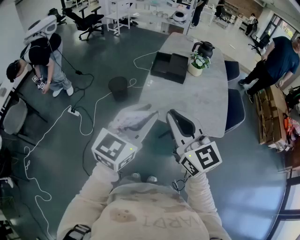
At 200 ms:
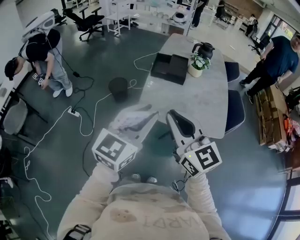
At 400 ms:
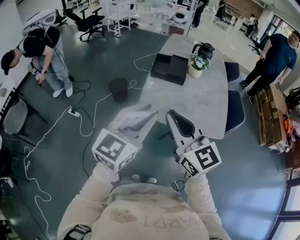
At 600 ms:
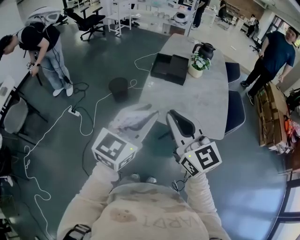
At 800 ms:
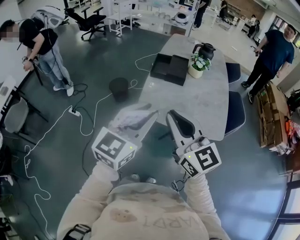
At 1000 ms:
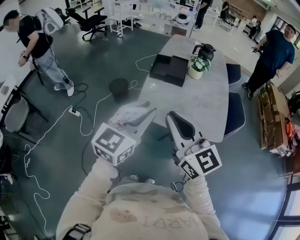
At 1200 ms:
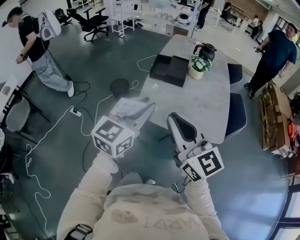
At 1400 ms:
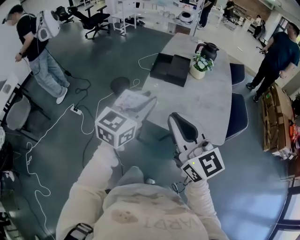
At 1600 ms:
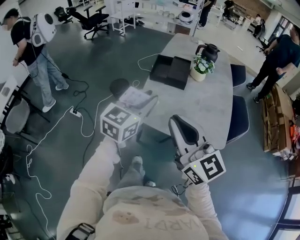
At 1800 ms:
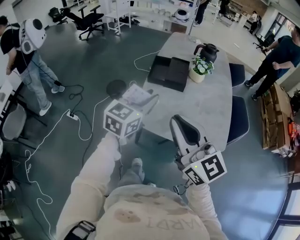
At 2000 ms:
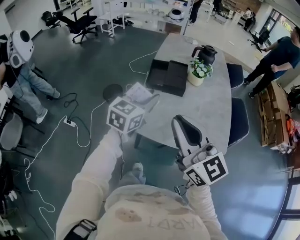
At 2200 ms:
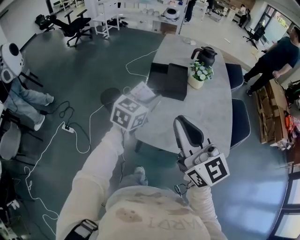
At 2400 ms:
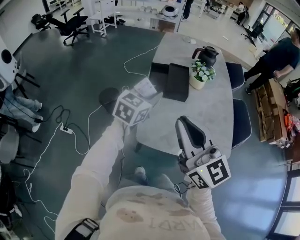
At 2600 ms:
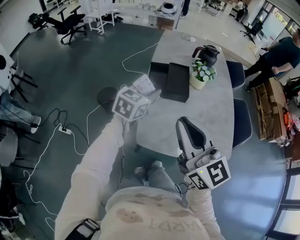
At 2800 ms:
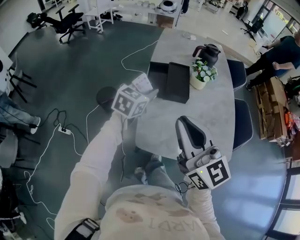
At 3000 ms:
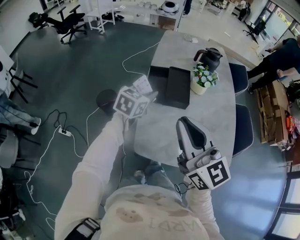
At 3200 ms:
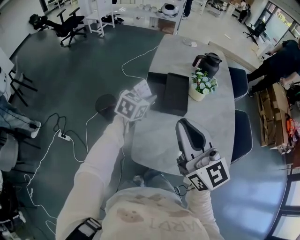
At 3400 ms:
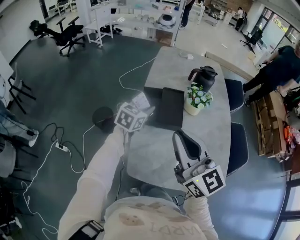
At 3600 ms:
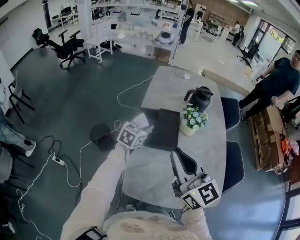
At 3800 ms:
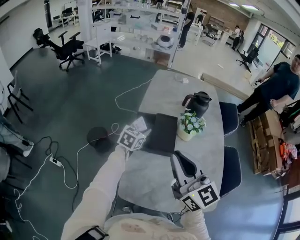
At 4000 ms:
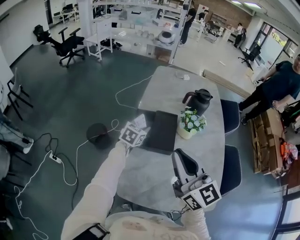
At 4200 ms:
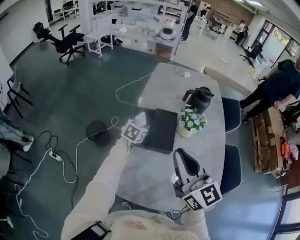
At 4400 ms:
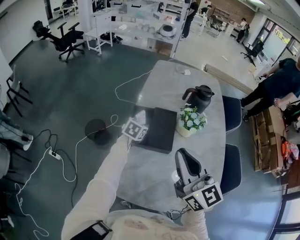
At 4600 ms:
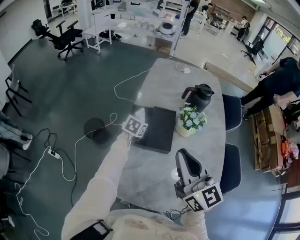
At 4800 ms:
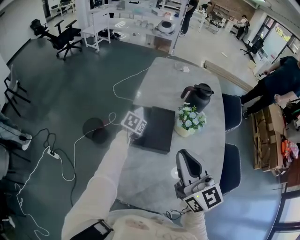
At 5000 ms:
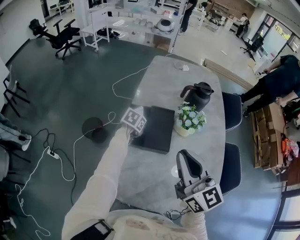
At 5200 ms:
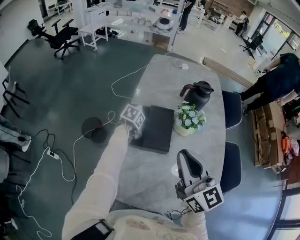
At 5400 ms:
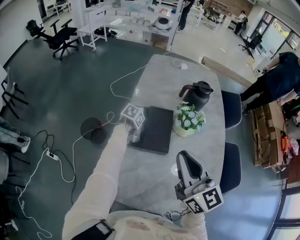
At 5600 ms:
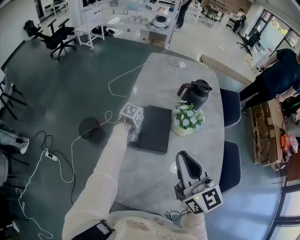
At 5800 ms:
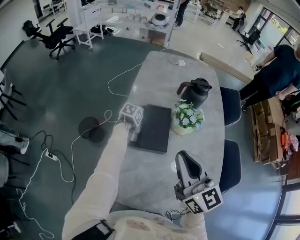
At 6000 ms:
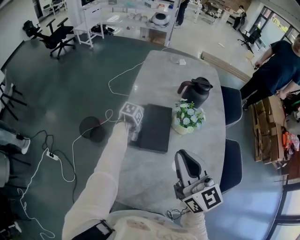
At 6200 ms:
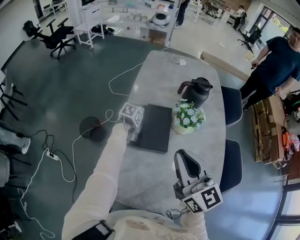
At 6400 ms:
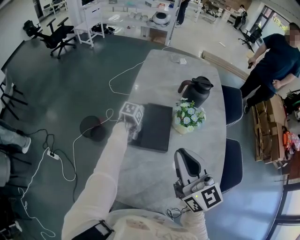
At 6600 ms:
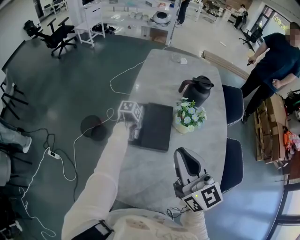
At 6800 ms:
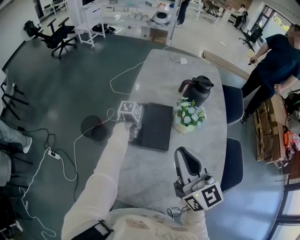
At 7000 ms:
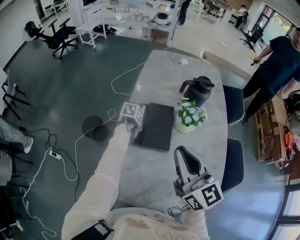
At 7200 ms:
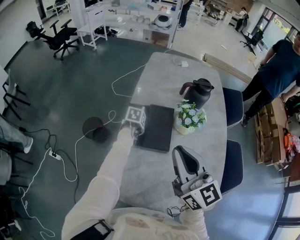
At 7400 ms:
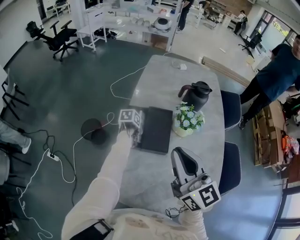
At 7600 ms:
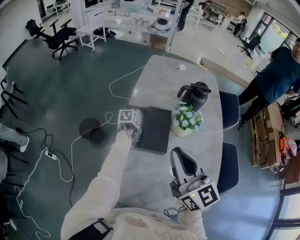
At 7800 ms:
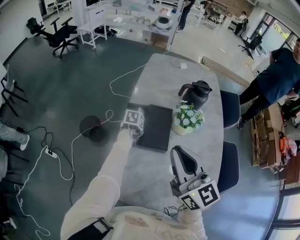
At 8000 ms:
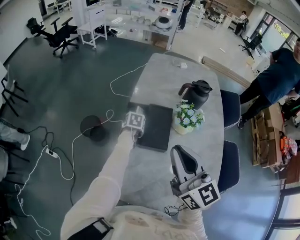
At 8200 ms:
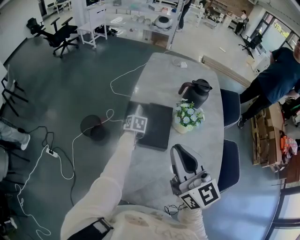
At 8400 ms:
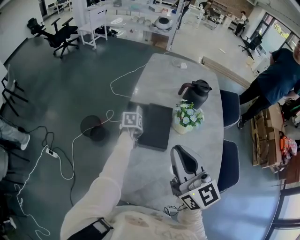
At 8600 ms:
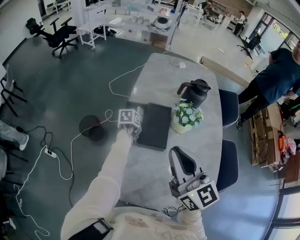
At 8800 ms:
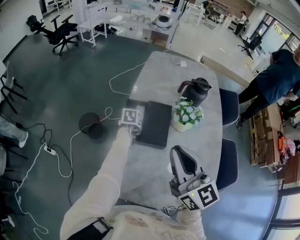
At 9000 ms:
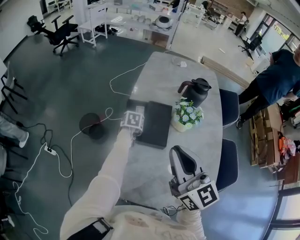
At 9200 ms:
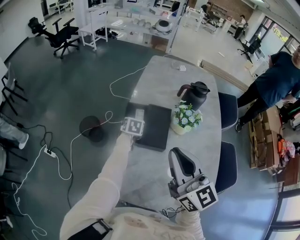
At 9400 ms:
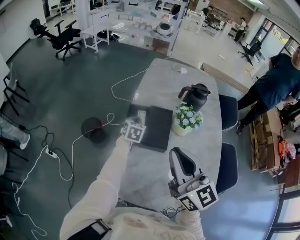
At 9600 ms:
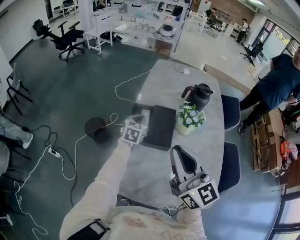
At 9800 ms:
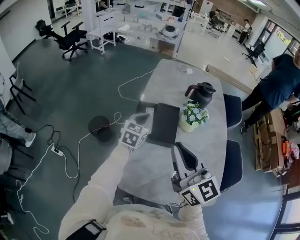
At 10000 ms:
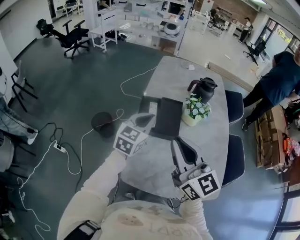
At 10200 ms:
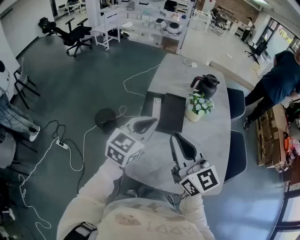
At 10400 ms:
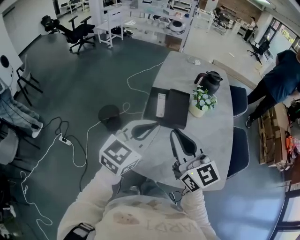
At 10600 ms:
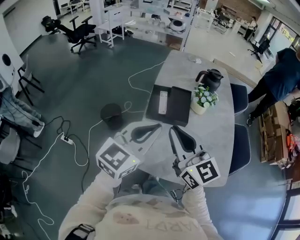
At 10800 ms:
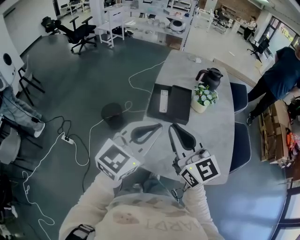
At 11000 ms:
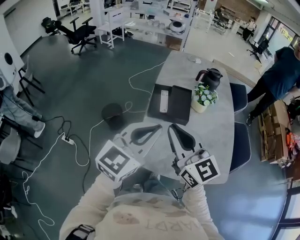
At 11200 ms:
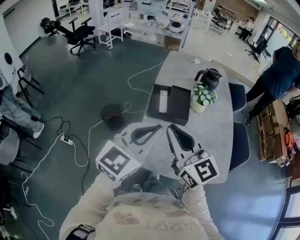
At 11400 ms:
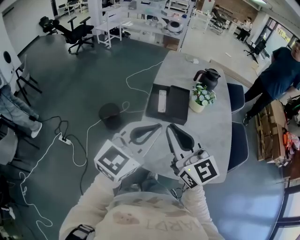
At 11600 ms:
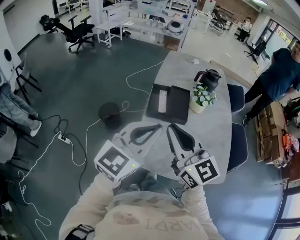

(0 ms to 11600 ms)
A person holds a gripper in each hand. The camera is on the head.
0 ms - 1400 ms: The right gripper shifts by approximately 5 cm. Meanwhile the left gripper heads forward, covering approximately 10 cm.
1400 ms - 2800 ms: Both grippers move forward, some 30 cm. The left gripper turns by some 20 degrees.
2800 ms - 4400 ms: The left gripper is displaced forward and downward by approximately 25 cm, and rotates roughly 20 degrees, while the right gripper is displaced forward and to the right by approximately 20 cm.
4400 ms - 5800 ms: The right gripper moves some 5 cm, while the left gripper is displaced downward by some 10 cm, and turns by some 40 degrees.
5800 ms - 7200 ms: The grippers stay close to where they were, moving slightly.
8800 ms - 10200 ms: The right gripper is displaced backward and to the left by some 10 cm; the left gripper heads upward and backward, covering roughly 40 cm, angles its fingers upward, by roughly 50 degrees, and closes up.
10200 ms - 11600 ms: The left gripper travels backward and upward by about 15 cm. Meanwhile the right gripper heads backward and to the left, covering roughly 10 cm.

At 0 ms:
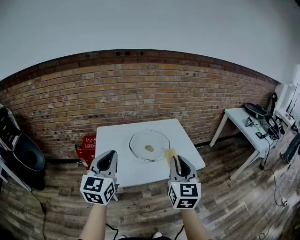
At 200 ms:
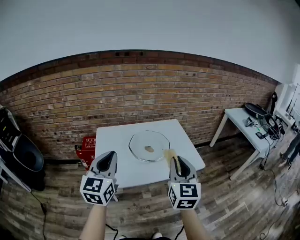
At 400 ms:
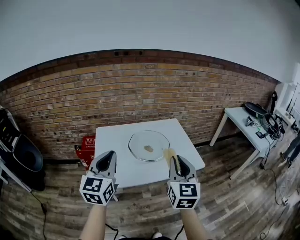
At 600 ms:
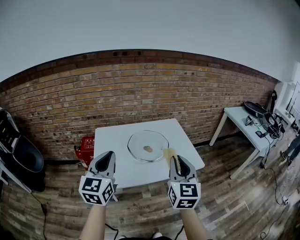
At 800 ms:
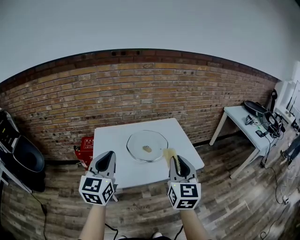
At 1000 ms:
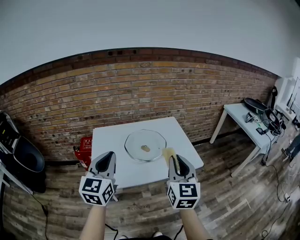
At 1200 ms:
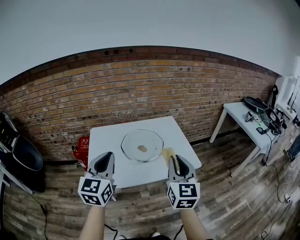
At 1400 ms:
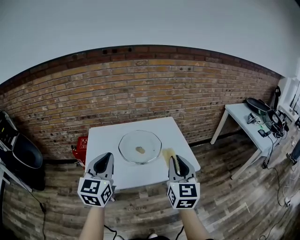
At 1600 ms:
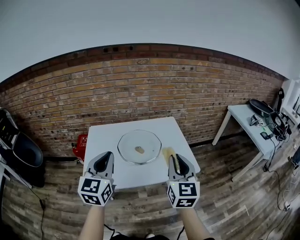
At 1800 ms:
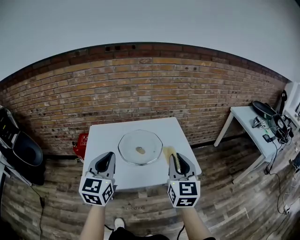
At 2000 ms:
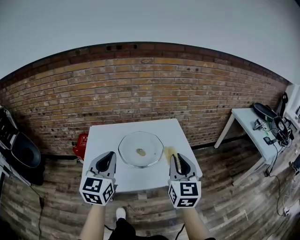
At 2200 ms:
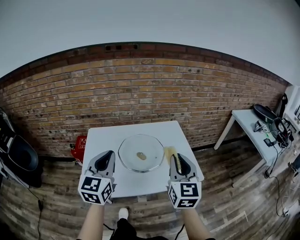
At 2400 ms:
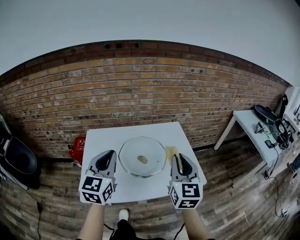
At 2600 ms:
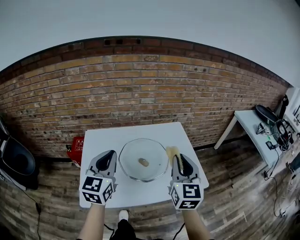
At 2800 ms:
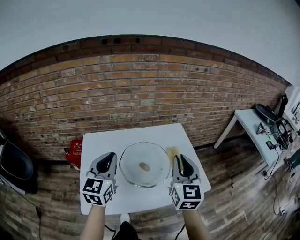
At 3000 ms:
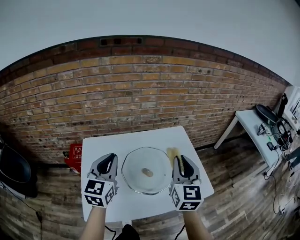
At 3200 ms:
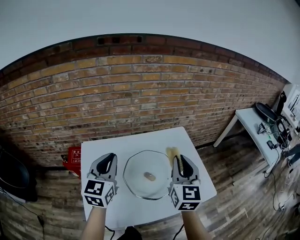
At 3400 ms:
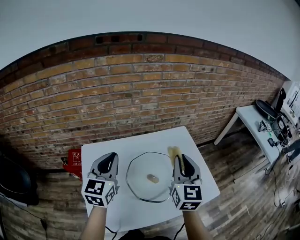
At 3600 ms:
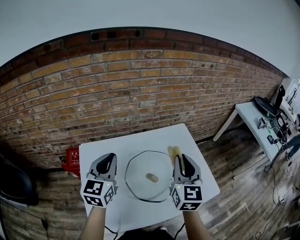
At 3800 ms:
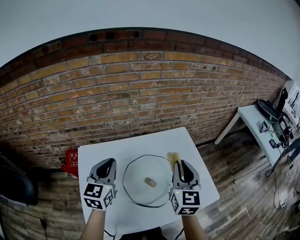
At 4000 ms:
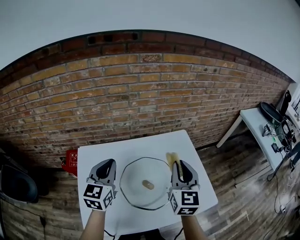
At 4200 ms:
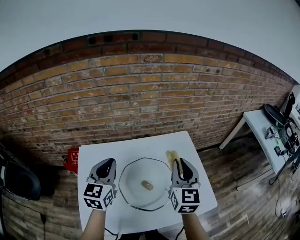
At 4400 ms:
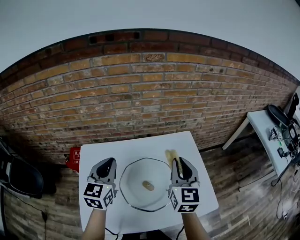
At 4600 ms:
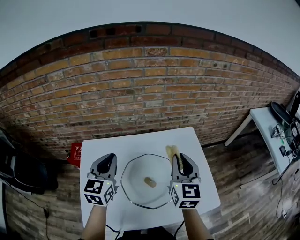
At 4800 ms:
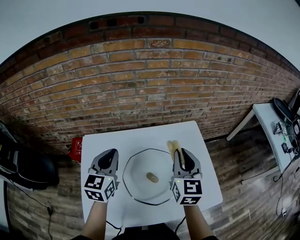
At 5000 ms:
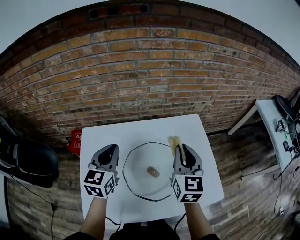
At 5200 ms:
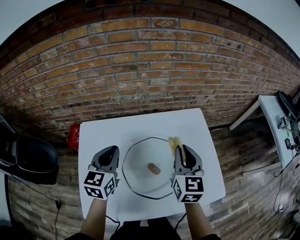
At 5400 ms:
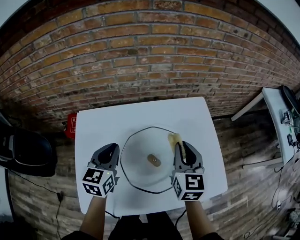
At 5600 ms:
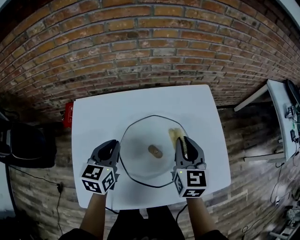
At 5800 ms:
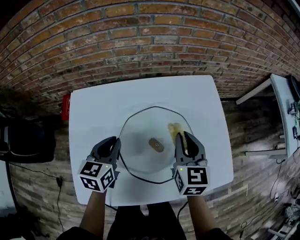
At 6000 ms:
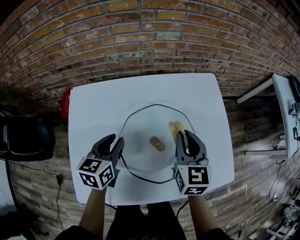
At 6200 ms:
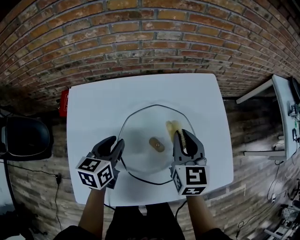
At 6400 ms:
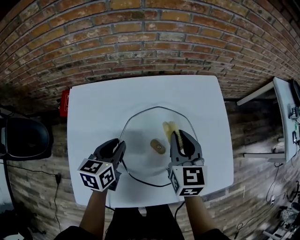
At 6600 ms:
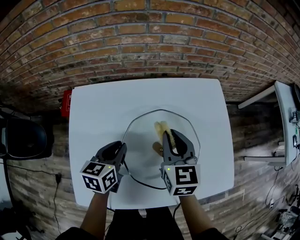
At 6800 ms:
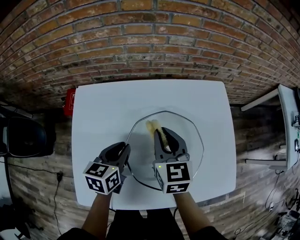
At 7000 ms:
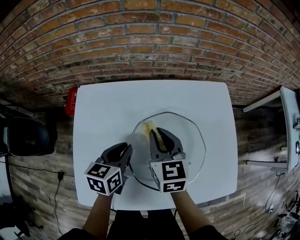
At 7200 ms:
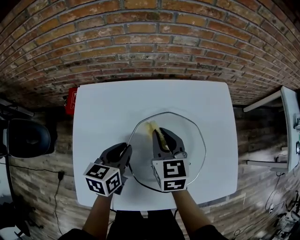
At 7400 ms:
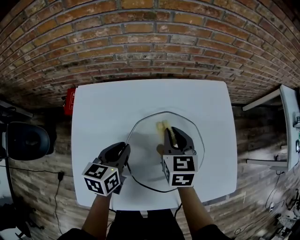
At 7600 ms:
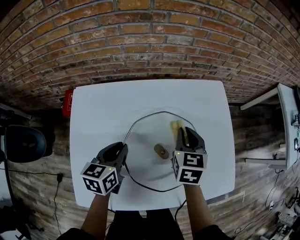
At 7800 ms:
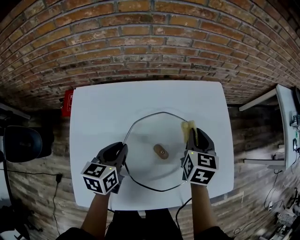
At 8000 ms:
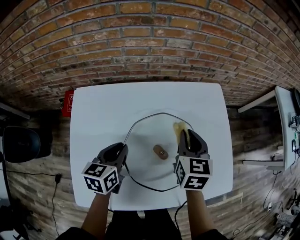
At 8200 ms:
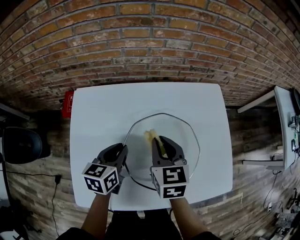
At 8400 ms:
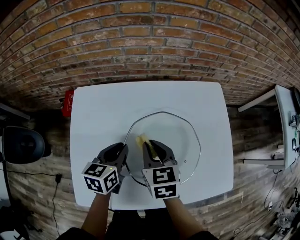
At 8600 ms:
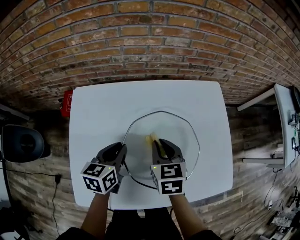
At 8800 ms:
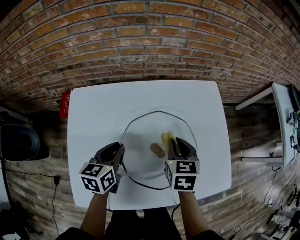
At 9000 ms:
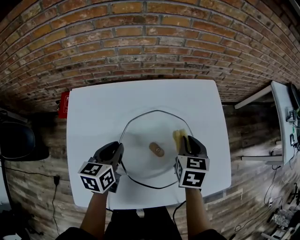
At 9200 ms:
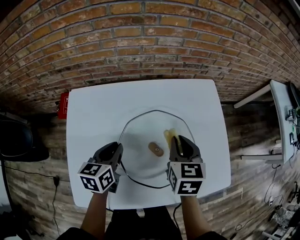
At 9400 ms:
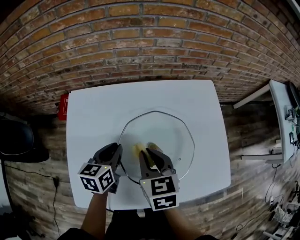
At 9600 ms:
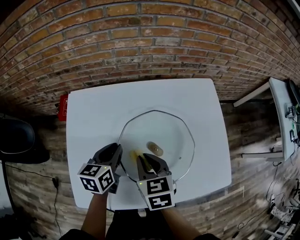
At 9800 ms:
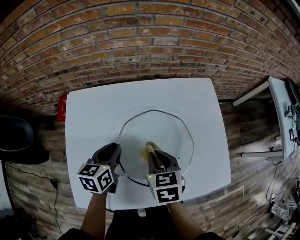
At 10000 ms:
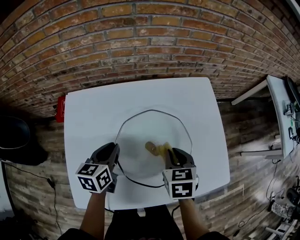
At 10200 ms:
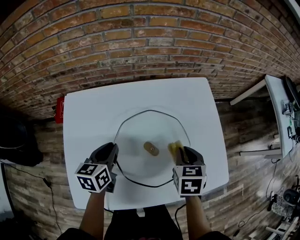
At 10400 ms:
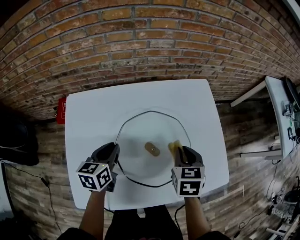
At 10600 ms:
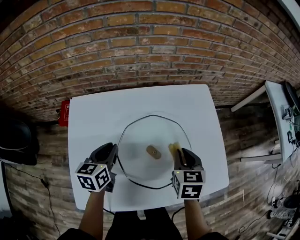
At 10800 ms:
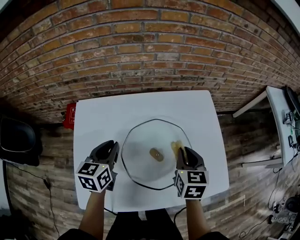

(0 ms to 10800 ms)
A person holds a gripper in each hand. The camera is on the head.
0 ms - 1600 ms: Both grippers move to the right and forward, some 10 cm.
1600 ms - 3000 ms: The grippers both shift forward by approximately 20 cm.
3000 ms - 4600 ms: The two grippers go some 10 cm forward.
4600 ms - 6200 ms: Both grippers move downward, some 20 cm. The left gripper turns by about 30 degrees, and opens its fingers.
6200 ms - 7800 ms: The right gripper shifts some 5 cm forward, and goes to the left and returns, some 10 cm each way.
7800 ms - 9200 ms: The right gripper goes left and right, approximately 15 cm each way, reversing 2 times.
9200 ms - 10800 ms: The right gripper travels to the left and back again, roughly 10 cm each way. Meanwhile the left gripper is displaced upward by roughly 5 cm.

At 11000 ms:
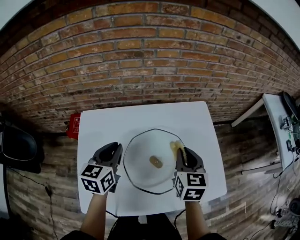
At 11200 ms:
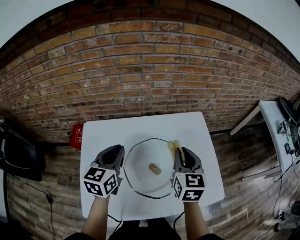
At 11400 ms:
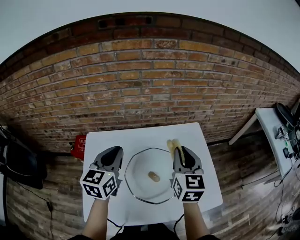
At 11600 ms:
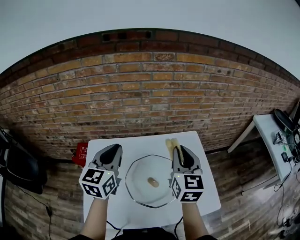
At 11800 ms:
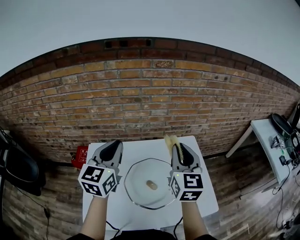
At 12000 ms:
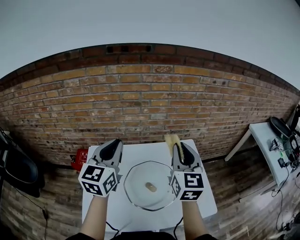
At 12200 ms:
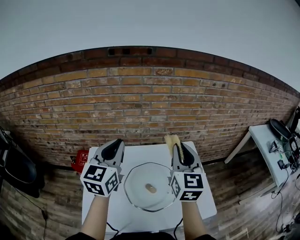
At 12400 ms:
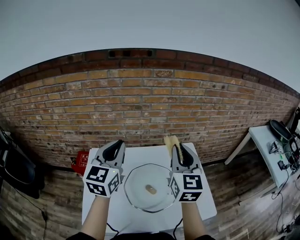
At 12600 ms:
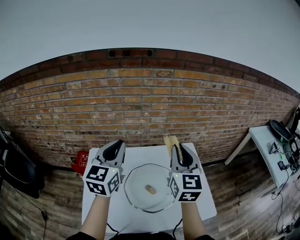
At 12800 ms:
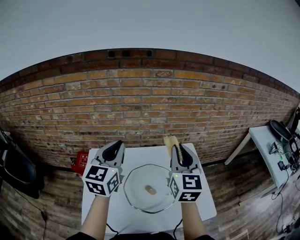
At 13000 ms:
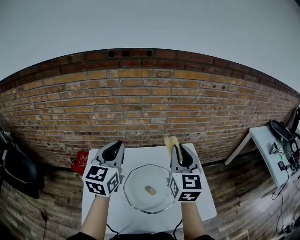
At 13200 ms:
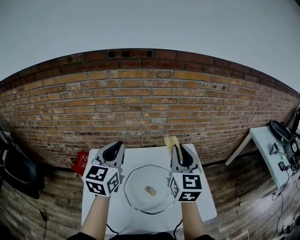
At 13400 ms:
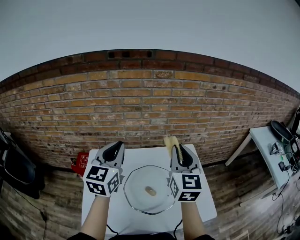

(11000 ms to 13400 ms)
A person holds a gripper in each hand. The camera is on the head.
11000 ms - 12200 ms: The grippers both shift upward by roughly 25 cm. The left gripper rotates approximately 30 degrees, while the right gripper swivels some 30 degrees.
12200 ms - 13400 ms: The grippers make only small movements.
